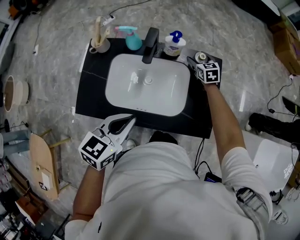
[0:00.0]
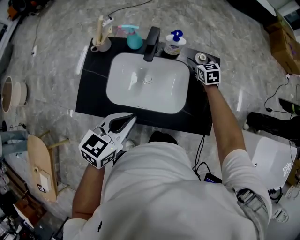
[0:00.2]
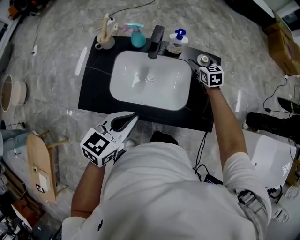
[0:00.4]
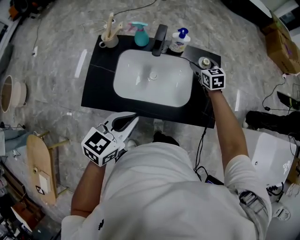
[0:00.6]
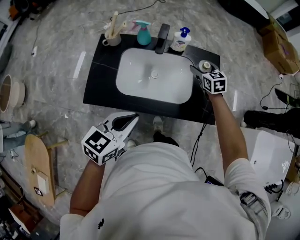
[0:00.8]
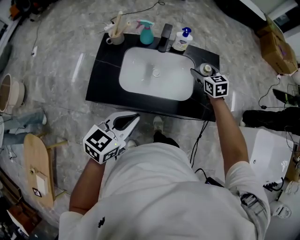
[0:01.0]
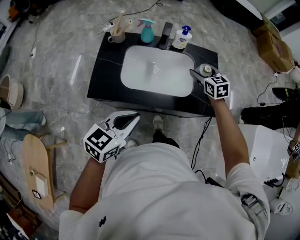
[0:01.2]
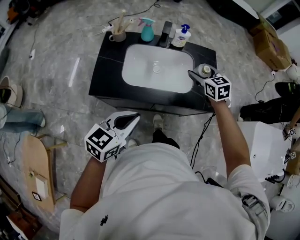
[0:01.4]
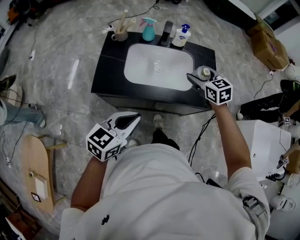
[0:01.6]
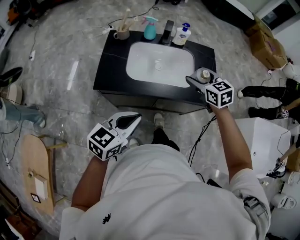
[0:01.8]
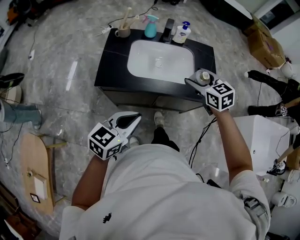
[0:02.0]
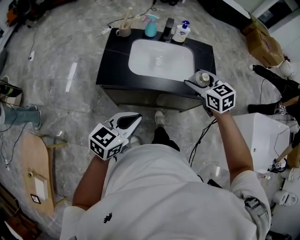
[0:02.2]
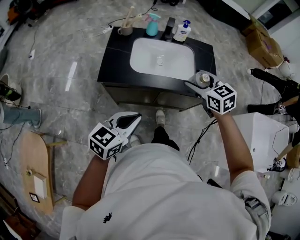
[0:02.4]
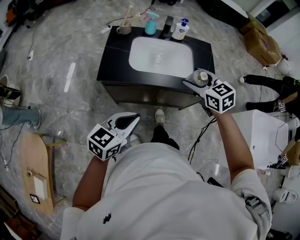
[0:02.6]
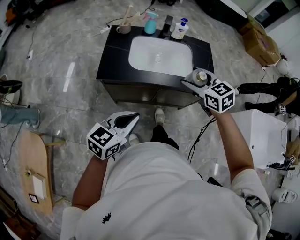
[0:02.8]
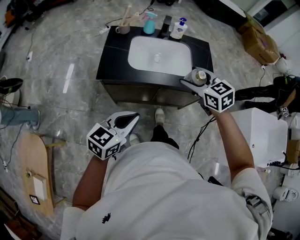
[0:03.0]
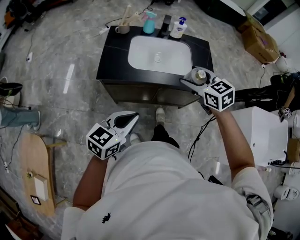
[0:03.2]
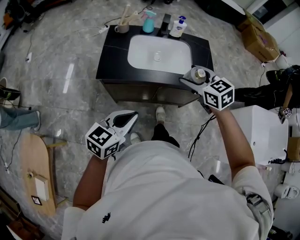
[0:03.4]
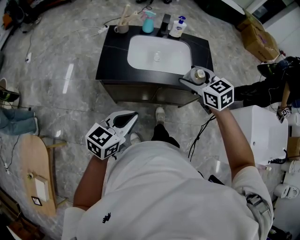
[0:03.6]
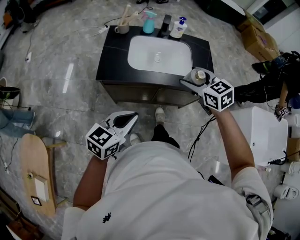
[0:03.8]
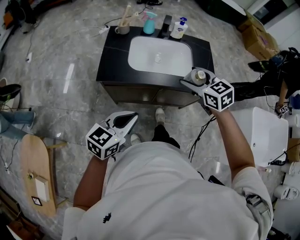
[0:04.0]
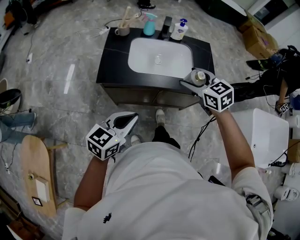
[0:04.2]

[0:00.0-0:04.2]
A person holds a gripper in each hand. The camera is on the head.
0:00.0 to 0:01.4: The right gripper heads backward and upward, covering about 30 cm. The left gripper shifts approximately 20 cm backward.
0:01.4 to 0:02.8: The left gripper goes about 15 cm backward. Meanwhile the right gripper moves backward, approximately 20 cm.
0:02.8 to 0:04.2: The grippers make only small movements.

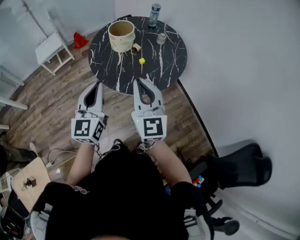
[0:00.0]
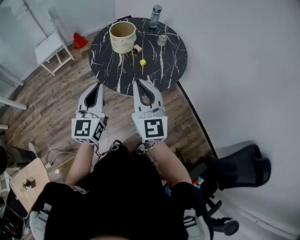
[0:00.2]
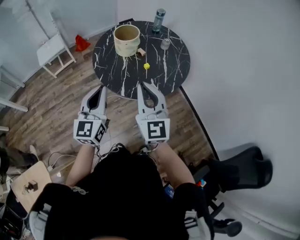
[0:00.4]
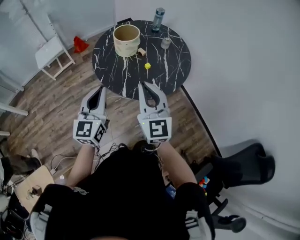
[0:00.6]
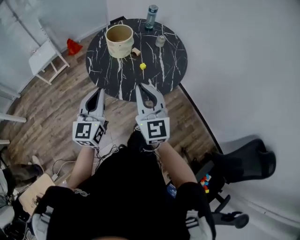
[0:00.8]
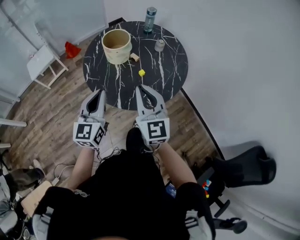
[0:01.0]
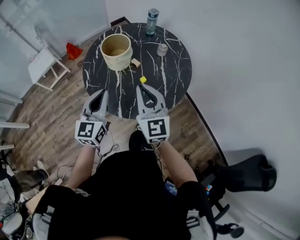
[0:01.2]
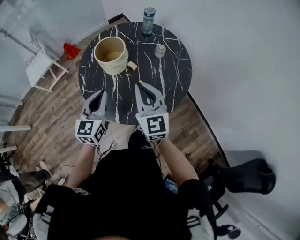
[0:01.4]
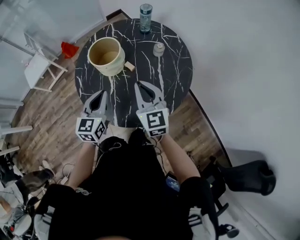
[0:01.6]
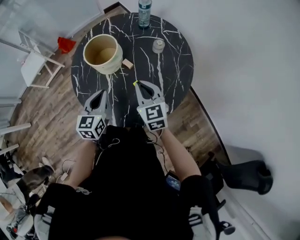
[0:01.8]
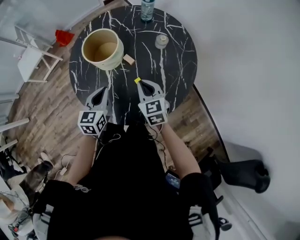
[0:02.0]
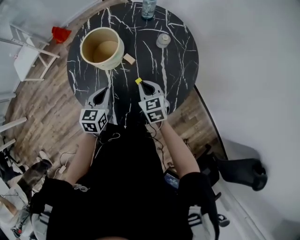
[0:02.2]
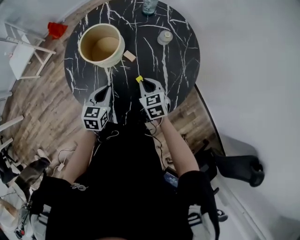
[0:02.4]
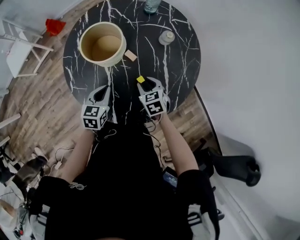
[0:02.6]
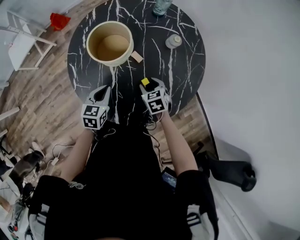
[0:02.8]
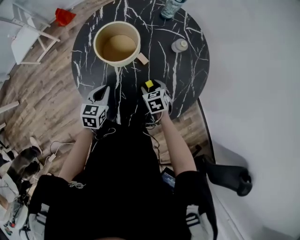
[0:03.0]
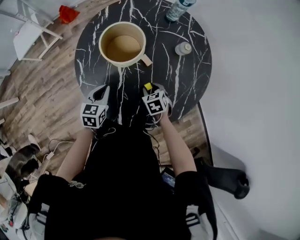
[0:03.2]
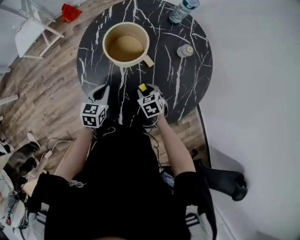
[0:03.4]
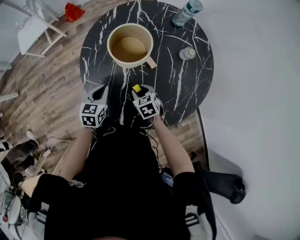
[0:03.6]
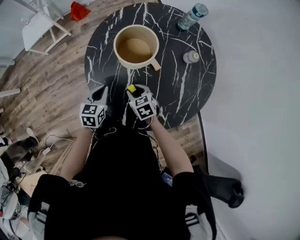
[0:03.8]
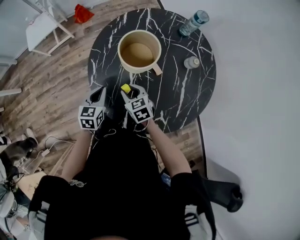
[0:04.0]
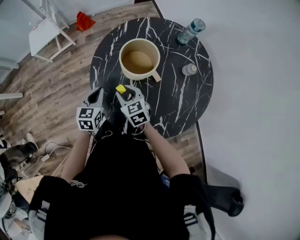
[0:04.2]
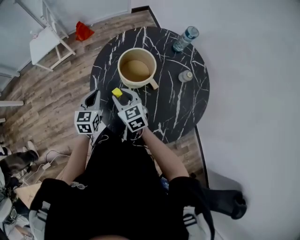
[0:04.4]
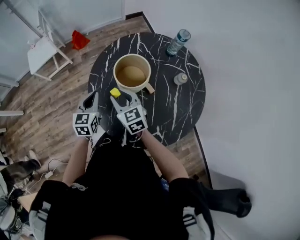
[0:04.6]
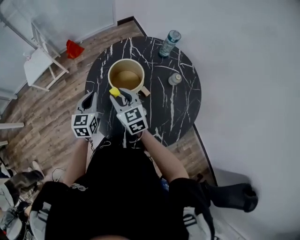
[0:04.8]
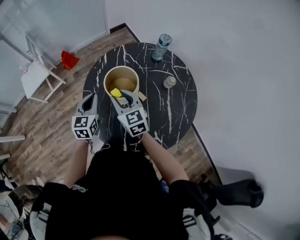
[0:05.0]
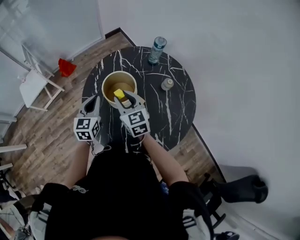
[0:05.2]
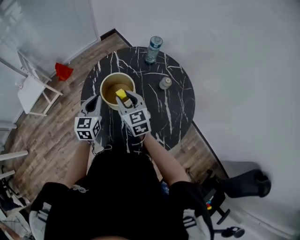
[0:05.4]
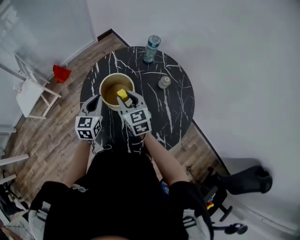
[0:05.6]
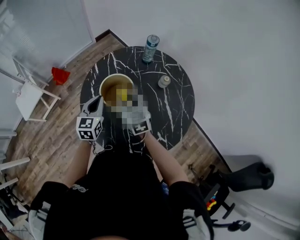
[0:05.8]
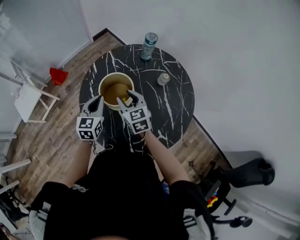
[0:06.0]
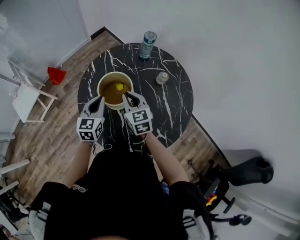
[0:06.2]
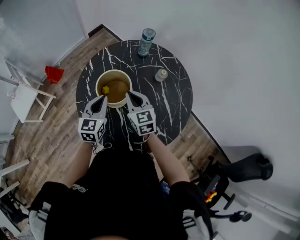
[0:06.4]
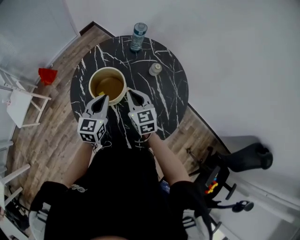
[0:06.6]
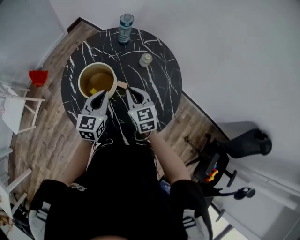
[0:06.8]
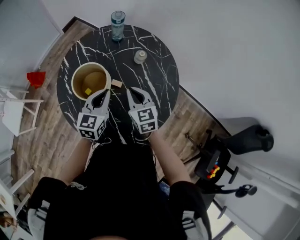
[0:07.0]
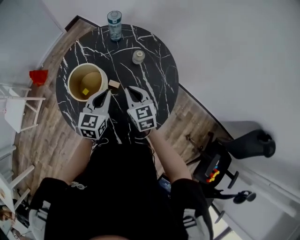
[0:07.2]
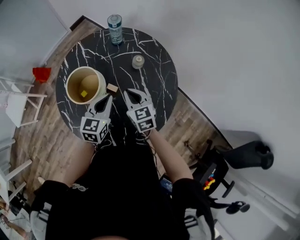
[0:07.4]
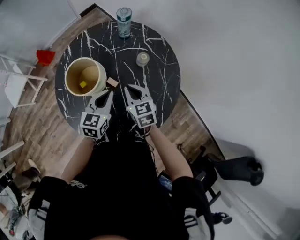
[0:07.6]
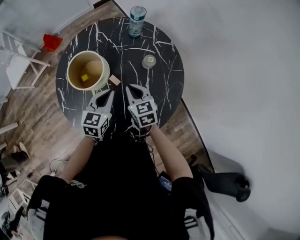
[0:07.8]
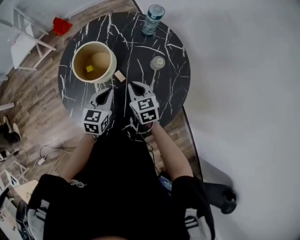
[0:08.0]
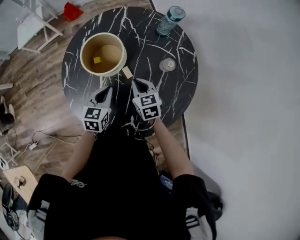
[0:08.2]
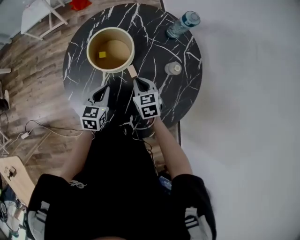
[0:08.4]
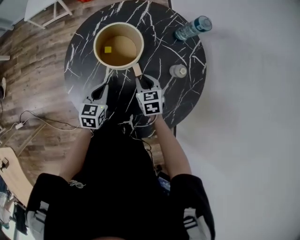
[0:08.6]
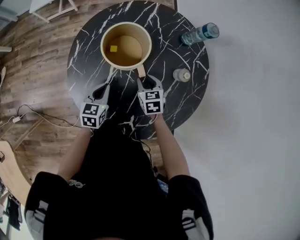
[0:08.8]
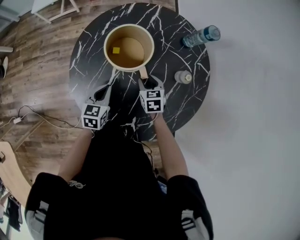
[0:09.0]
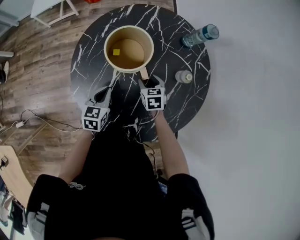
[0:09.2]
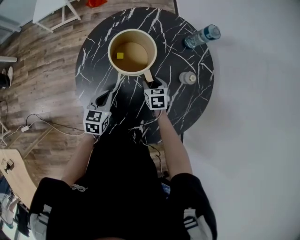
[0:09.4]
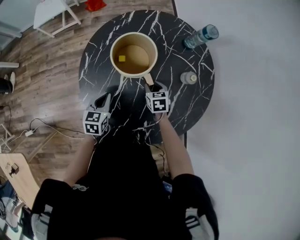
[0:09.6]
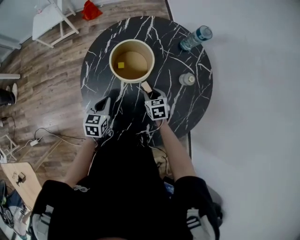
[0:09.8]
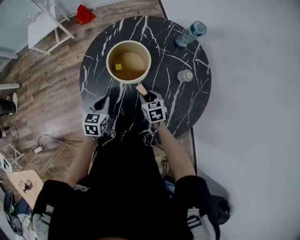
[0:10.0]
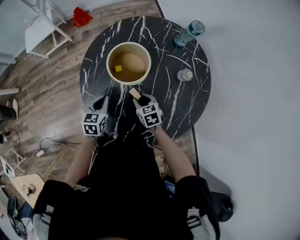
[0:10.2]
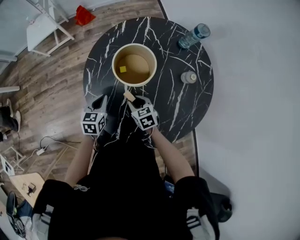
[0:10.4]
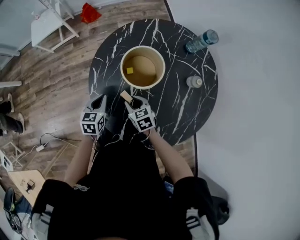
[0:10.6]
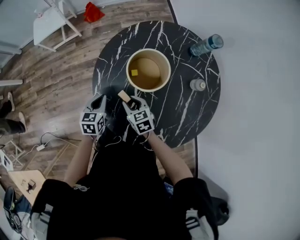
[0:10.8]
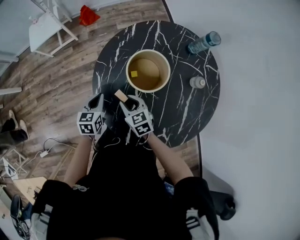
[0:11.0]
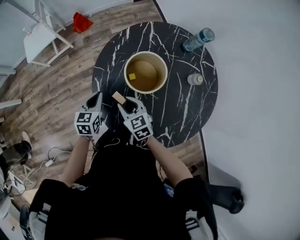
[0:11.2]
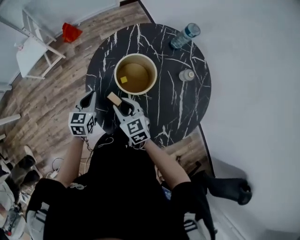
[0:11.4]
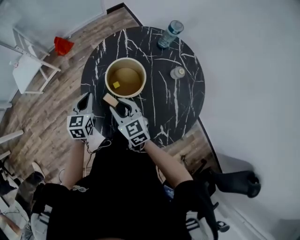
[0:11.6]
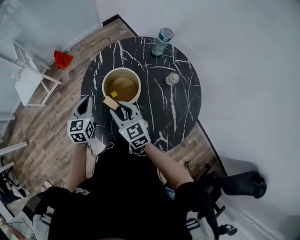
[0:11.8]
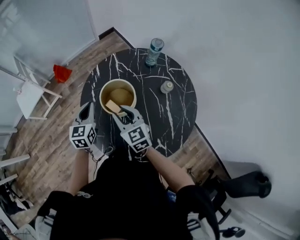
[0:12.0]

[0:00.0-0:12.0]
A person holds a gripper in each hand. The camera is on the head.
0:00.0 to 0:01.6: The grippers both shift forward and downward by about 30 cm. The left gripper rotates roughly 20 degrees.
0:01.6 to 0:03.0: The right gripper travels downward by about 30 cm, tilts its fingers approximately 50 degrees downward, and opens its fingers. The left gripper moves downward, roughly 20 cm, and changes its angle by roughly 20 degrees.
0:03.0 to 0:04.4: The left gripper is displaced to the left, upward and forward by roughly 15 cm. Meanwhile the right gripper travels to the left and upward by about 25 cm, rotates roughly 30 degrees, and closes.
0:04.4 to 0:06.0: The left gripper shifts by approximately 15 cm, and swivels roughly 20 degrees. The right gripper moves about 15 cm, and changes its angle by about 30 degrees.
0:06.0 to 0:07.6: The grippers both shift to the right by some 20 cm. The right gripper closes up.
0:07.6 to 0:09.0: The left gripper changes place by about 20 cm, and turns by approximately 40 degrees; the right gripper heads downward, covering some 15 cm, rotates about 30 degrees, and opens.
0:09.0 to 0:10.4: The right gripper travels to the left and backward by some 15 cm. Meanwhile the left gripper moves to the left, approximately 10 cm.
0:10.4 to 0:12.0: Both grippers travel together upward and forward, roughly 20 cm. The right gripper rotates approximately 40 degrees; the left gripper changes its angle by roughly 20 degrees.

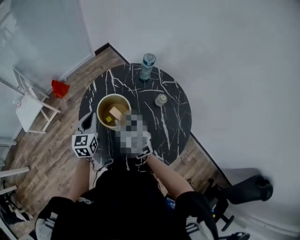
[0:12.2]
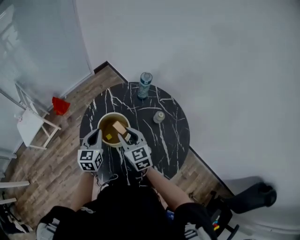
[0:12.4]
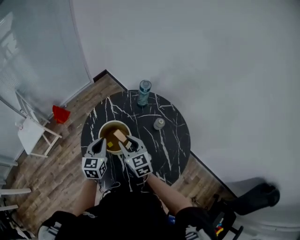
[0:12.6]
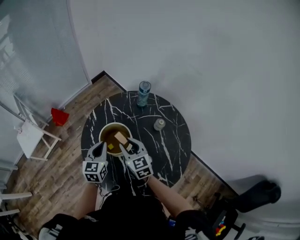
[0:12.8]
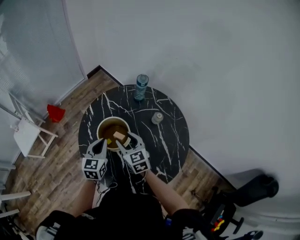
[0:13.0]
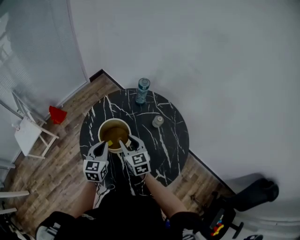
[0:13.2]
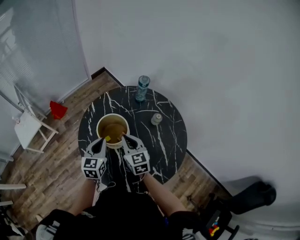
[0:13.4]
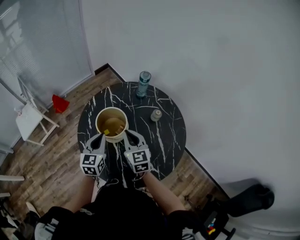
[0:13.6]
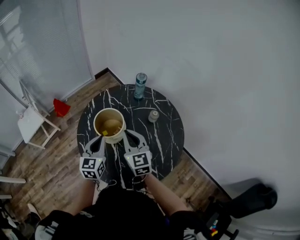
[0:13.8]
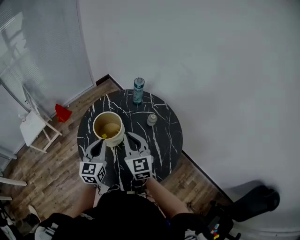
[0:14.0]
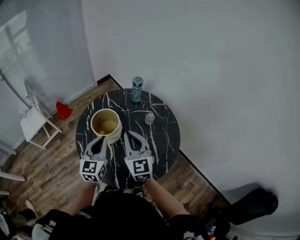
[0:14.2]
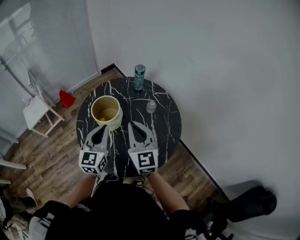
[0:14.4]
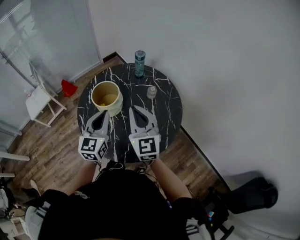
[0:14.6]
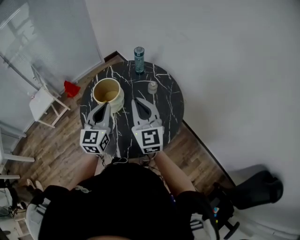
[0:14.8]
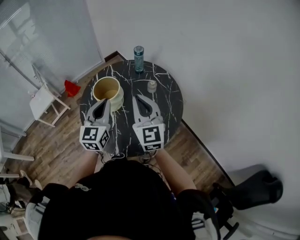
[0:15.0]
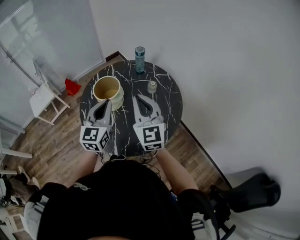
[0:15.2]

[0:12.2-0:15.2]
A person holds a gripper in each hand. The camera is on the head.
0:12.2 to 0:13.8: The left gripper travels backward and to the right by about 10 cm. Meanwhile the right gripper is displaced to the right and upward by about 10 cm, and closes its fingers.
0:13.8 to 0:15.2: The left gripper moves upward, to the right and backward, some 20 cm, while the right gripper travels upward, backward and to the right by approximately 20 cm.

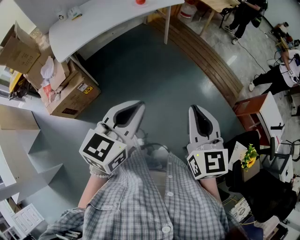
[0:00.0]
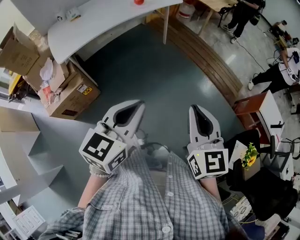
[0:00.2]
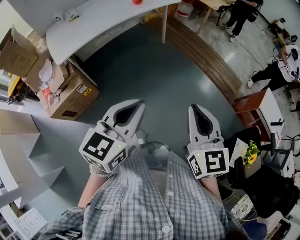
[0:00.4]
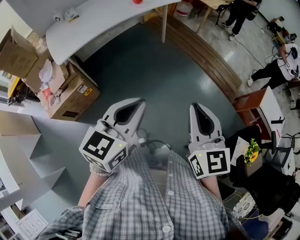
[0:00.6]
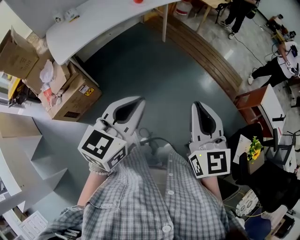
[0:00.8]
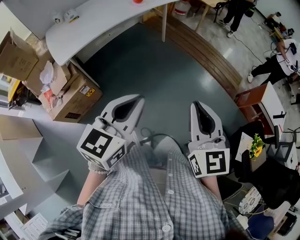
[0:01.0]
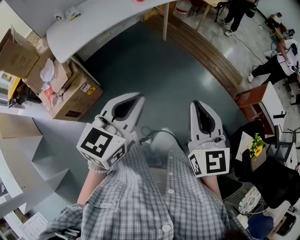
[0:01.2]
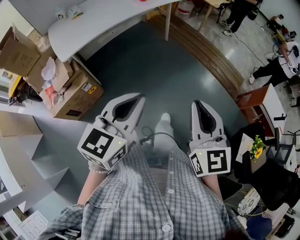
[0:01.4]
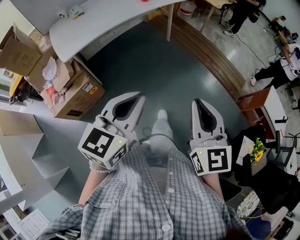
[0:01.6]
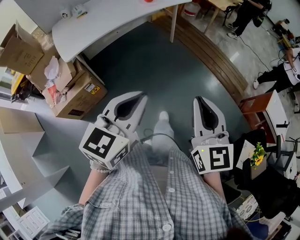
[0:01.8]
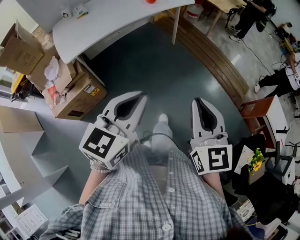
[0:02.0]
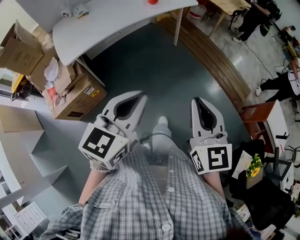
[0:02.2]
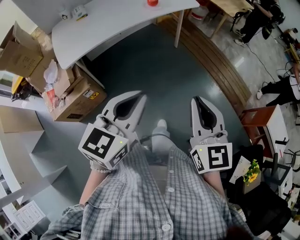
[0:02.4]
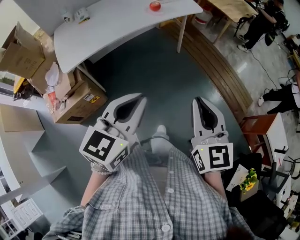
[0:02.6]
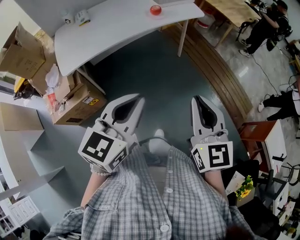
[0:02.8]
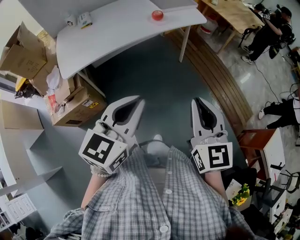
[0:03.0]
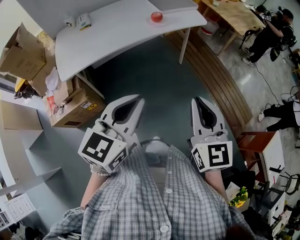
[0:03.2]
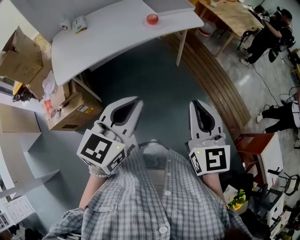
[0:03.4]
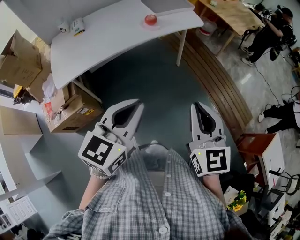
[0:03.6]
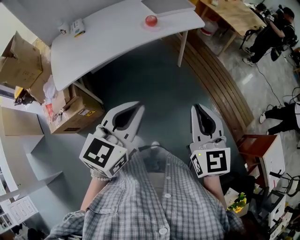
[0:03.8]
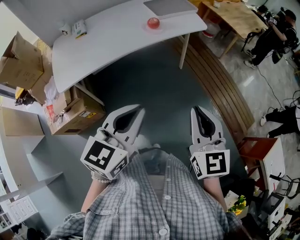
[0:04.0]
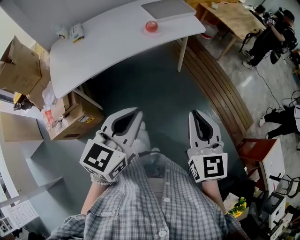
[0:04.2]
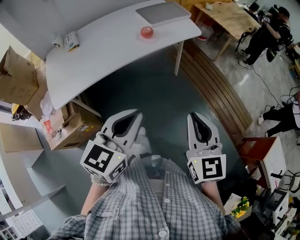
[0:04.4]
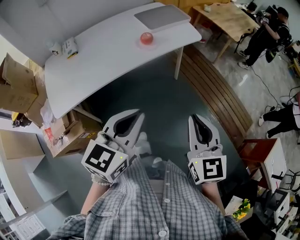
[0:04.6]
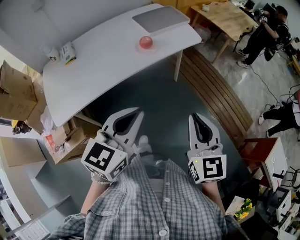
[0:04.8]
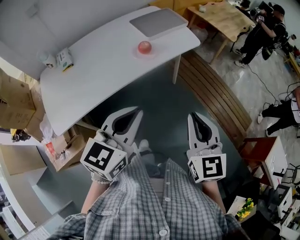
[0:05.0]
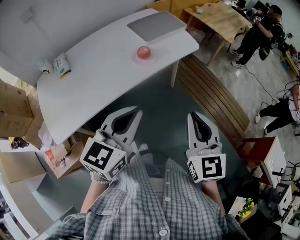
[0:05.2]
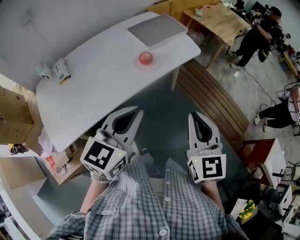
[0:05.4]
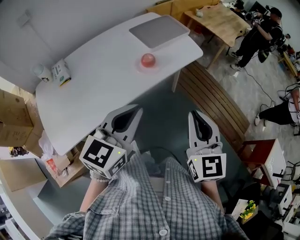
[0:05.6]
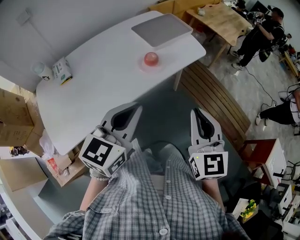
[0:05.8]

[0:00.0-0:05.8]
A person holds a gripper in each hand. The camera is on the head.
0:00.0 to 0:01.4: The grippers both shift to the left by approximately 5 cm.
0:01.4 to 0:02.8: Both grippers move forward, roughly 20 cm.
0:02.8 to 0:04.4: The two grippers go approximately 15 cm forward.
0:04.4 to 0:05.8: The grippers both shift forward and to the left by approximately 20 cm.
